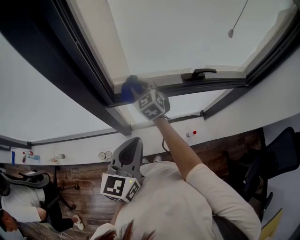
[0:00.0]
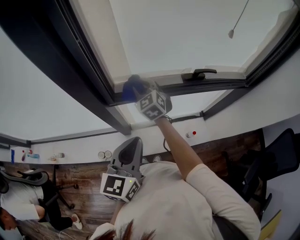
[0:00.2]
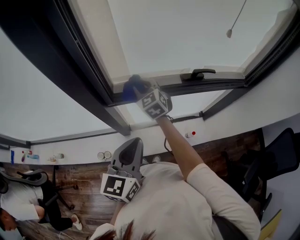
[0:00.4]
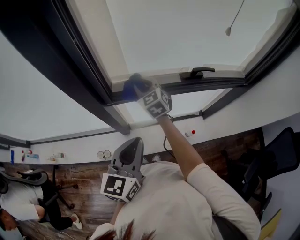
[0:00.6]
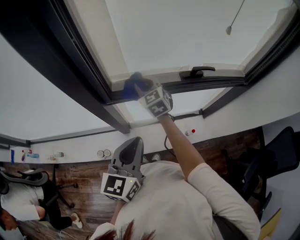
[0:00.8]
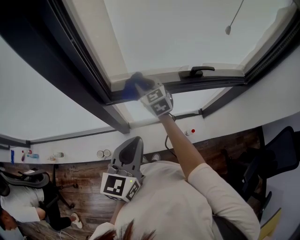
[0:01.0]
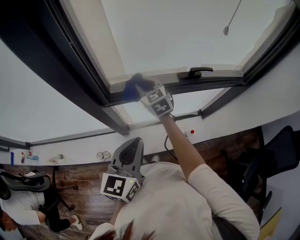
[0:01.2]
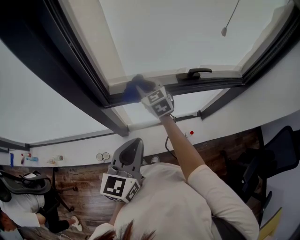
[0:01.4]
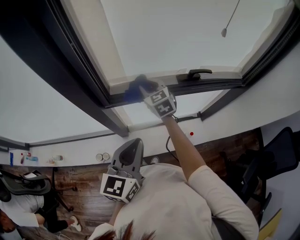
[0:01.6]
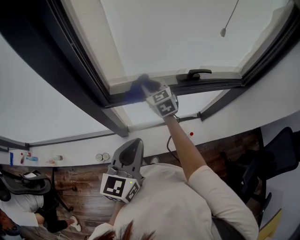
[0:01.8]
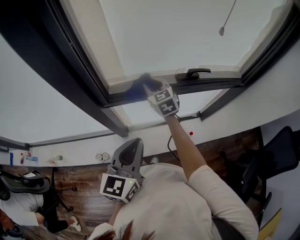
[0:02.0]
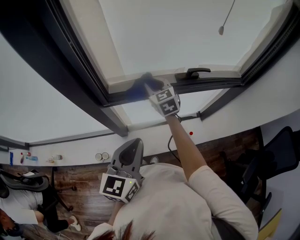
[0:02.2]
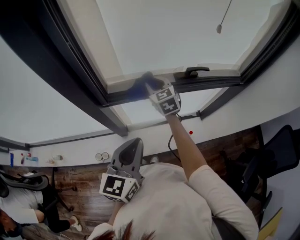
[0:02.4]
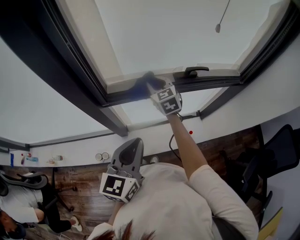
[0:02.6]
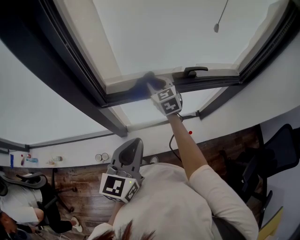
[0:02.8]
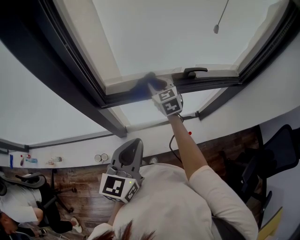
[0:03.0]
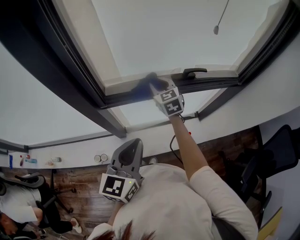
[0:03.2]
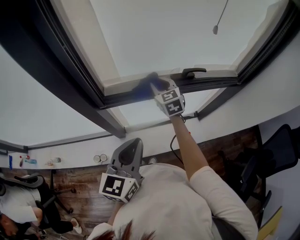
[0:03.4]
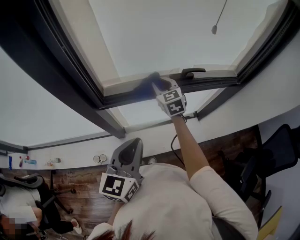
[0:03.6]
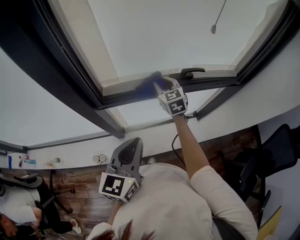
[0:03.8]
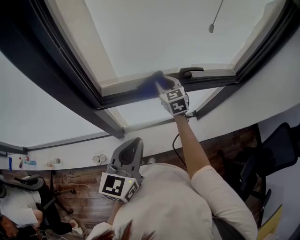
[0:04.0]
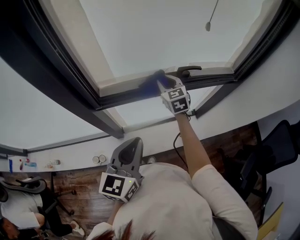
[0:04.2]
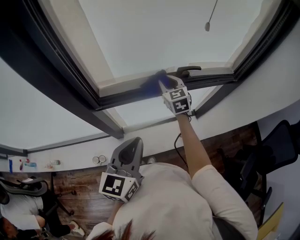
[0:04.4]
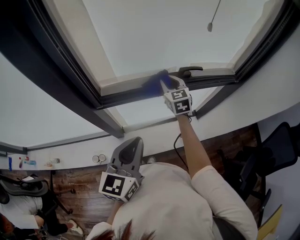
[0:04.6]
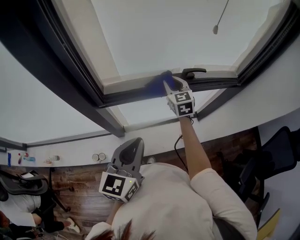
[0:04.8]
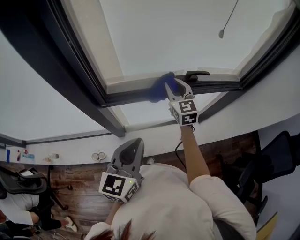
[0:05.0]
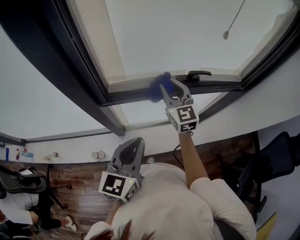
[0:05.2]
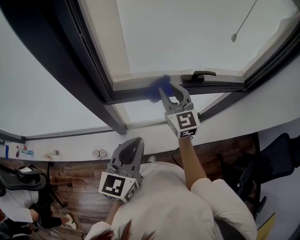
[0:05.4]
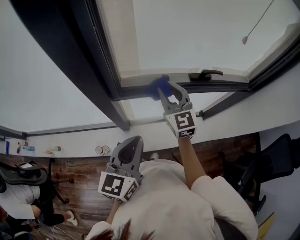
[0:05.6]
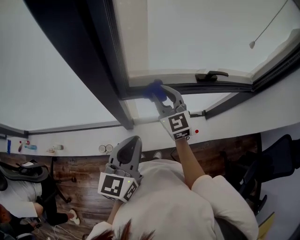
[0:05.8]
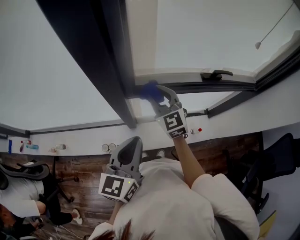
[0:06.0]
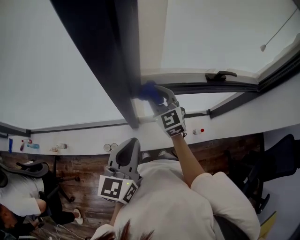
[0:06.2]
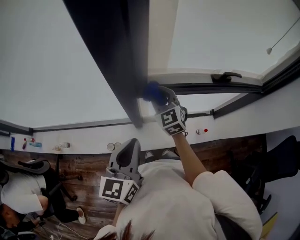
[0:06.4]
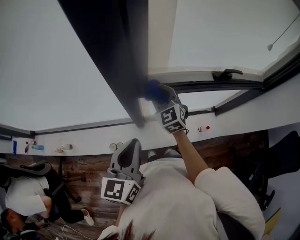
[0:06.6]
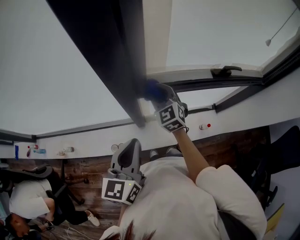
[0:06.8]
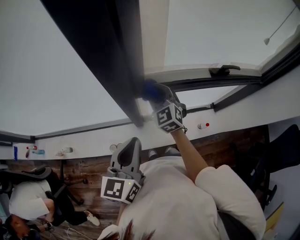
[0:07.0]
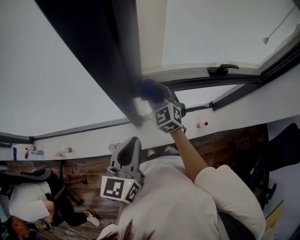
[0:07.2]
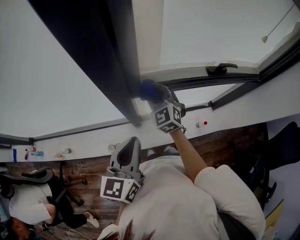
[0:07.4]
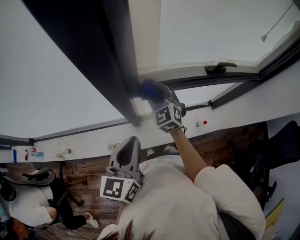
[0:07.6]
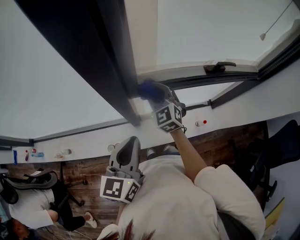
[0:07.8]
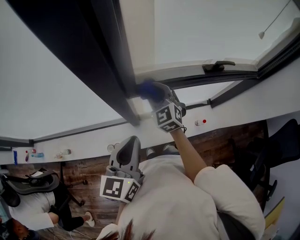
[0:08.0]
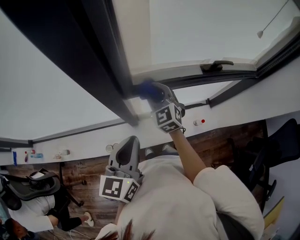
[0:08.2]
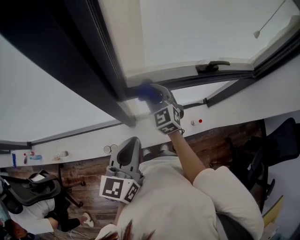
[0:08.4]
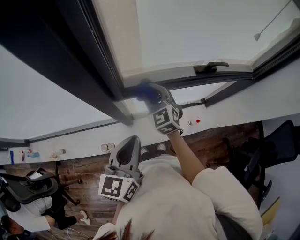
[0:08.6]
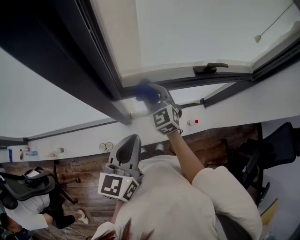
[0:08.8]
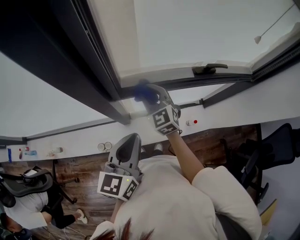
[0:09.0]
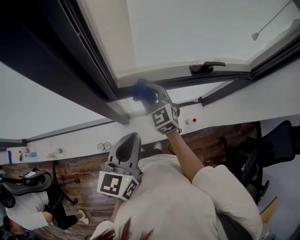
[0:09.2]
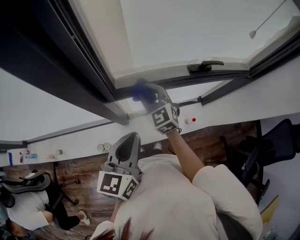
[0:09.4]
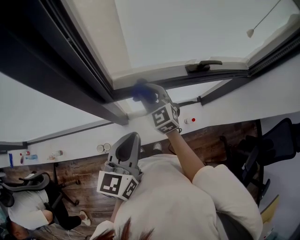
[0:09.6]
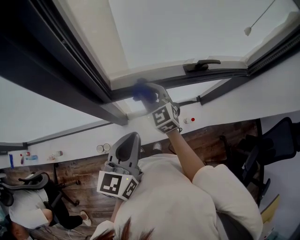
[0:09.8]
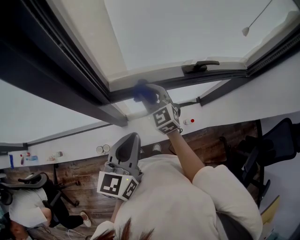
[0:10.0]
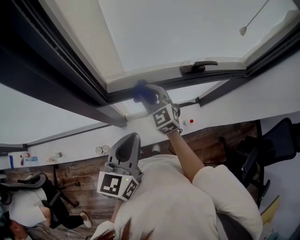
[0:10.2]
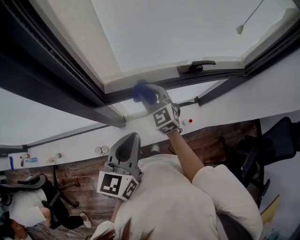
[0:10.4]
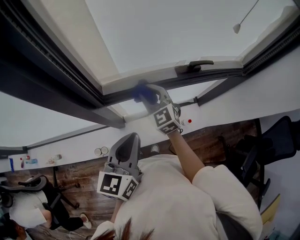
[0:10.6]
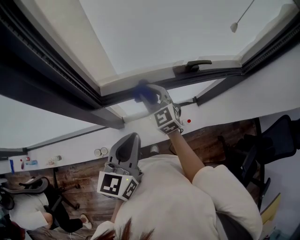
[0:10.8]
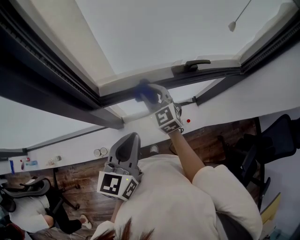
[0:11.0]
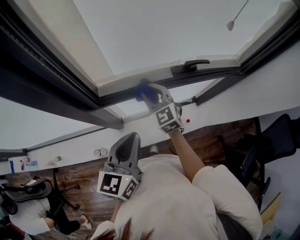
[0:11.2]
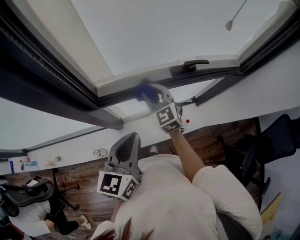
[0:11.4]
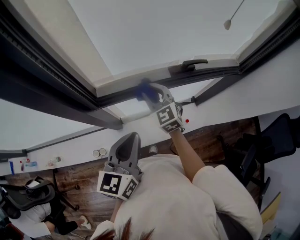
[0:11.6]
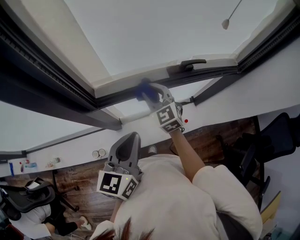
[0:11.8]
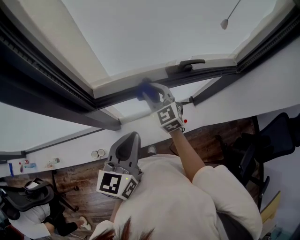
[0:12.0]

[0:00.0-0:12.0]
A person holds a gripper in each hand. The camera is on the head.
0:00.0 to 0:01.6: The right gripper moves to the right, roughly 5 cm.
0:01.6 to 0:03.0: The right gripper is displaced to the right by some 5 cm.
0:03.0 to 0:04.4: The right gripper shifts about 10 cm to the right.
0:04.4 to 0:06.0: The right gripper shifts about 25 cm to the left and backward, and rotates approximately 20 degrees. Meanwhile the left gripper moves to the left, about 15 cm.
0:06.0 to 0:07.6: The right gripper is displaced downward by about 5 cm.
0:07.6 to 0:09.0: Both grippers travel together to the right, some 5 cm.
0:09.0 to 0:10.4: Both grippers move to the right, about 5 cm.
0:10.4 to 0:12.0: The right gripper heads to the right, covering some 5 cm.

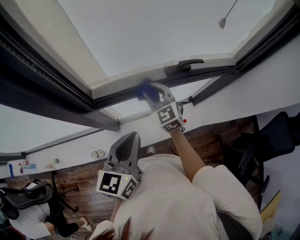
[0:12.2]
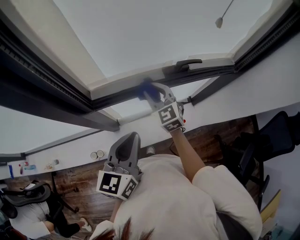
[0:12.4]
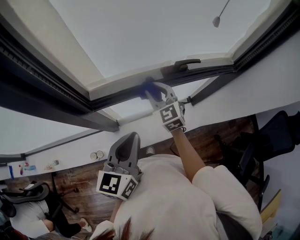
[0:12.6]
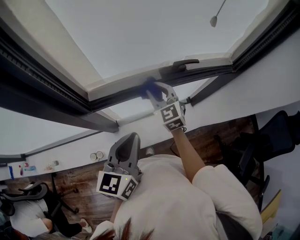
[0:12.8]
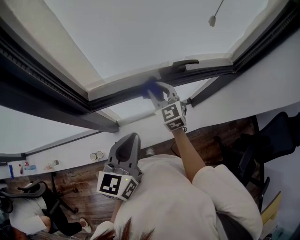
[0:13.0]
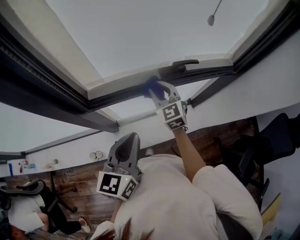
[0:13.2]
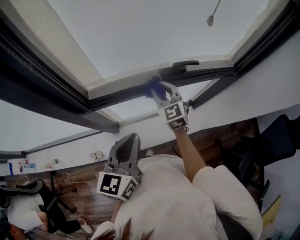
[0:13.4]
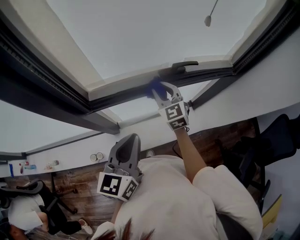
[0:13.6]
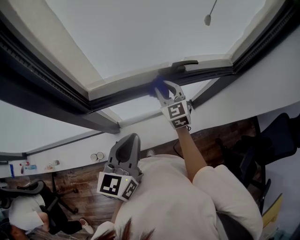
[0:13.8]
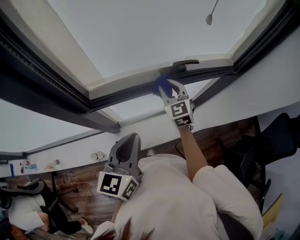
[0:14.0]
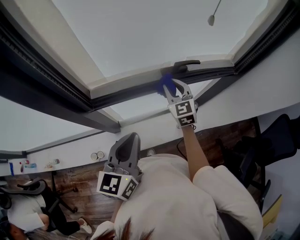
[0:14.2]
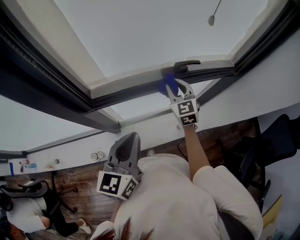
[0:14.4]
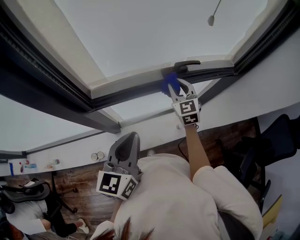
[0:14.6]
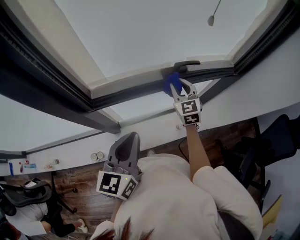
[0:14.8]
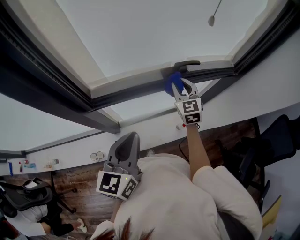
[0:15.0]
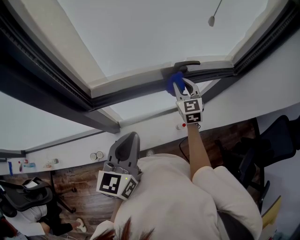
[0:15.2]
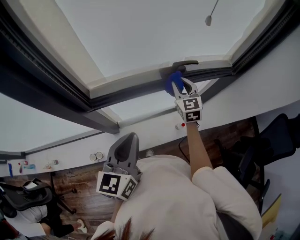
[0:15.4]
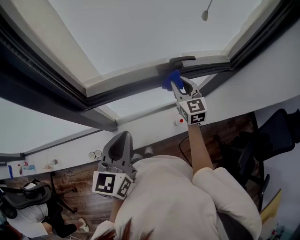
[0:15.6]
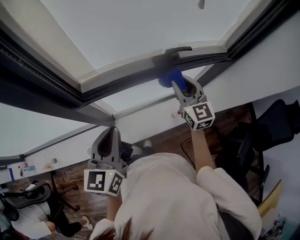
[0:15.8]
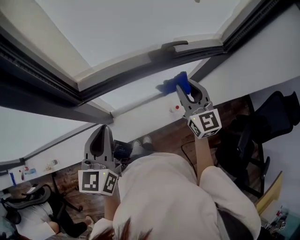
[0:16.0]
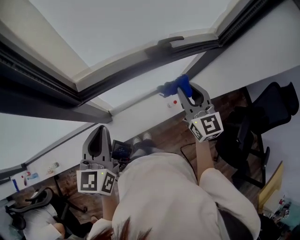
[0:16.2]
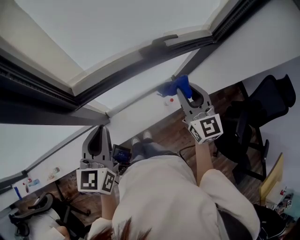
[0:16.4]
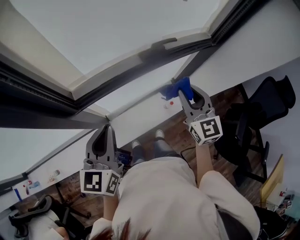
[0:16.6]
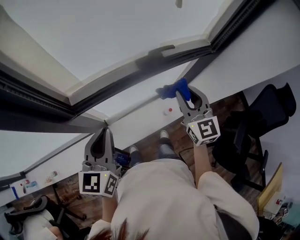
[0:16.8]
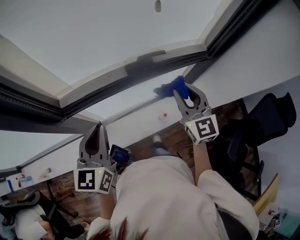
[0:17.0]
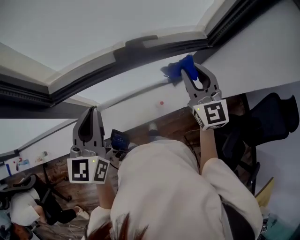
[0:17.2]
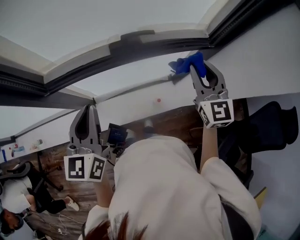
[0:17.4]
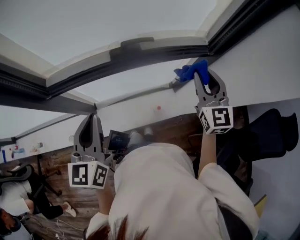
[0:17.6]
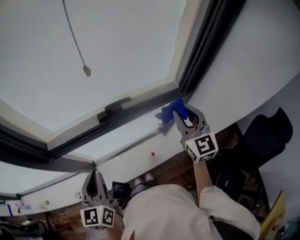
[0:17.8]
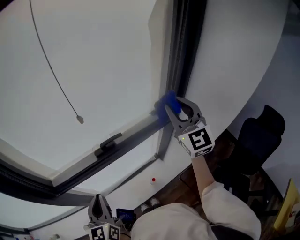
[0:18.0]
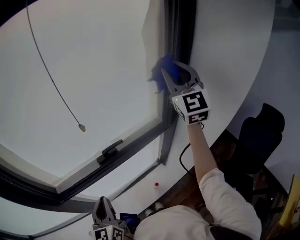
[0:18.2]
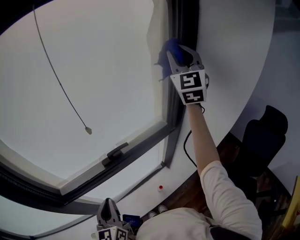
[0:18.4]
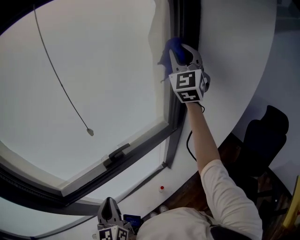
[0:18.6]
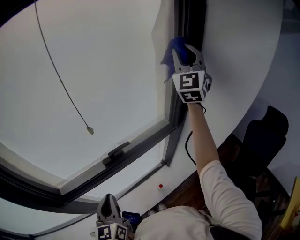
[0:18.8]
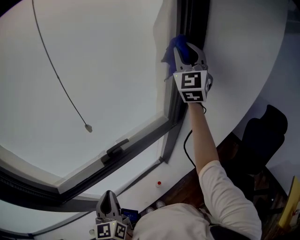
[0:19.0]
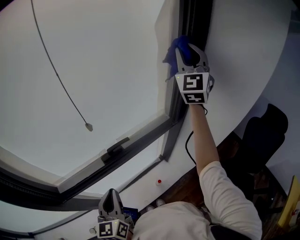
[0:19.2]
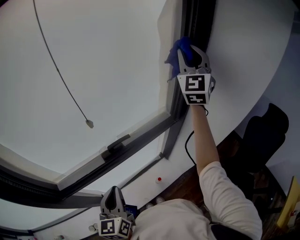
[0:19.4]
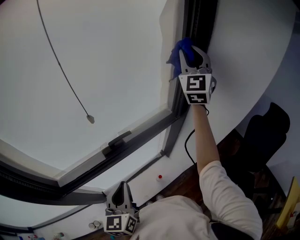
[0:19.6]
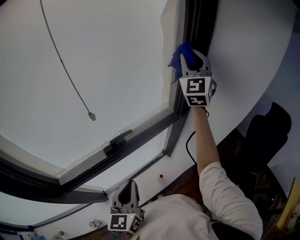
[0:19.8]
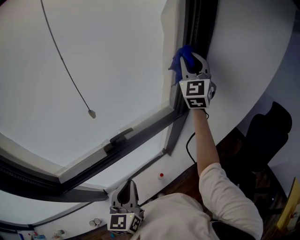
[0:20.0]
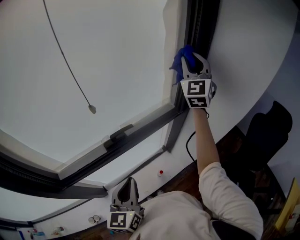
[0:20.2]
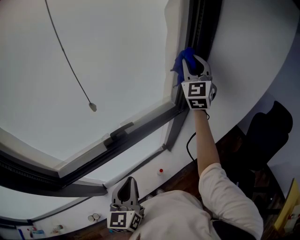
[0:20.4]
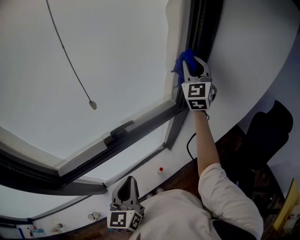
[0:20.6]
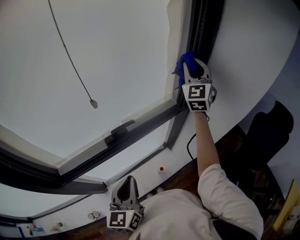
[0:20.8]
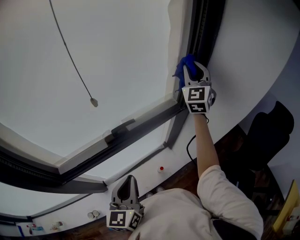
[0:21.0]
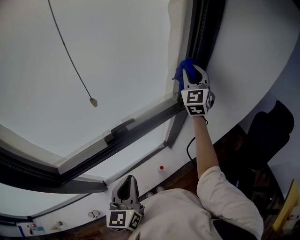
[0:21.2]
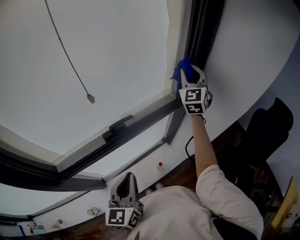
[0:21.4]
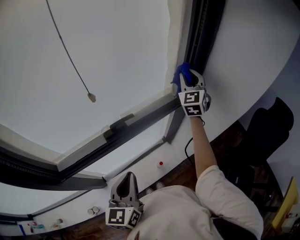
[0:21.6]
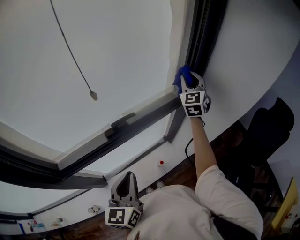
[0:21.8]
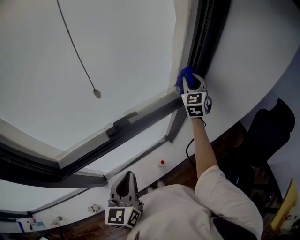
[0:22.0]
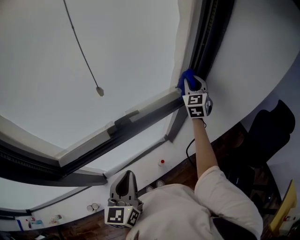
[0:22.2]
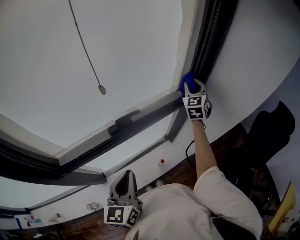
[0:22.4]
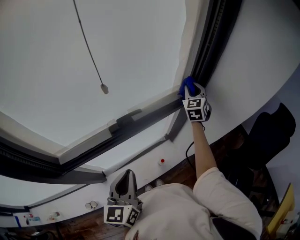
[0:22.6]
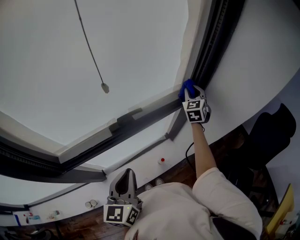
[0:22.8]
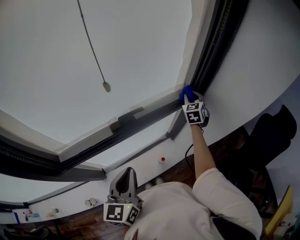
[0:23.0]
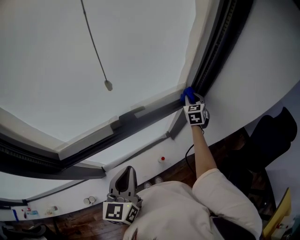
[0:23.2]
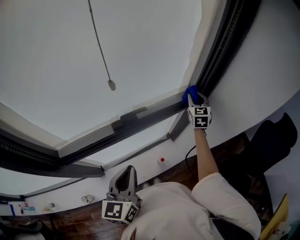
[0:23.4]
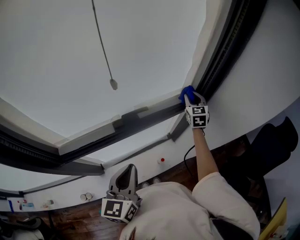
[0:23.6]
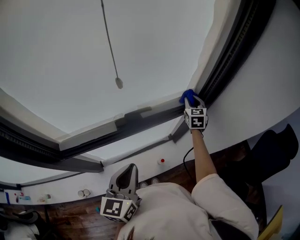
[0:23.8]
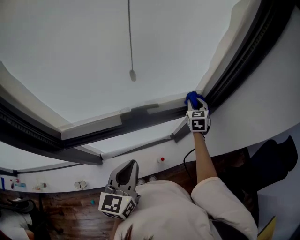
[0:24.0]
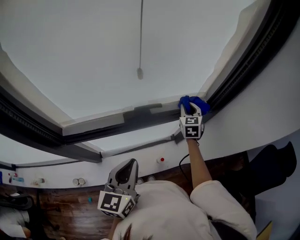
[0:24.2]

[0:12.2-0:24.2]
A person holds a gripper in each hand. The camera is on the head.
0:12.2 to 0:13.8: The right gripper travels to the right by about 10 cm.
0:13.8 to 0:15.2: The right gripper heads to the right, covering approximately 5 cm.
0:15.2 to 0:16.6: The right gripper goes approximately 20 cm backward and upward, while the left gripper shifts approximately 5 cm to the left.
0:16.6 to 0:18.2: The left gripper goes approximately 15 cm to the right, while the right gripper is displaced upward, to the right and forward by some 50 cm, and swivels roughly 40 degrees.
0:18.2 to 0:19.8: The right gripper shifts about 5 cm forward, and turns by roughly 20 degrees; the left gripper moves to the right, approximately 10 cm.
0:19.8 to 0:21.2: The right gripper goes some 10 cm downward.
0:21.2 to 0:22.6: The right gripper shifts some 15 cm downward.
0:22.6 to 0:24.2: The right gripper moves to the left and downward, roughly 15 cm, and changes its angle by roughly 20 degrees.
